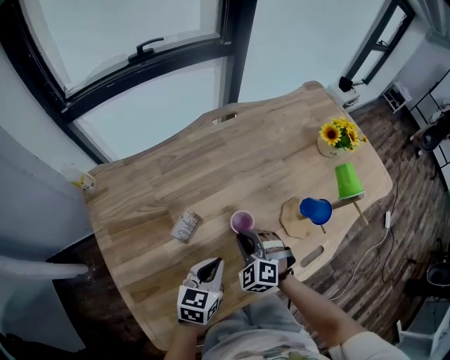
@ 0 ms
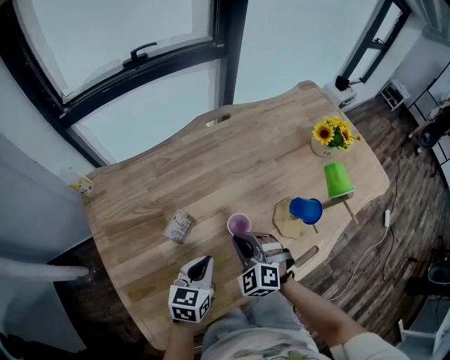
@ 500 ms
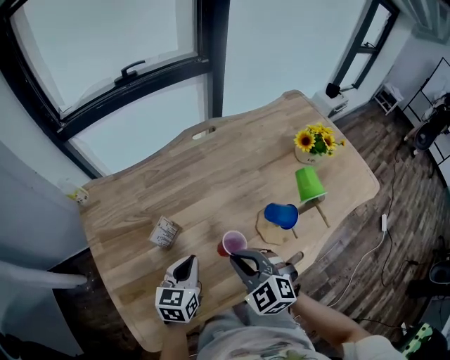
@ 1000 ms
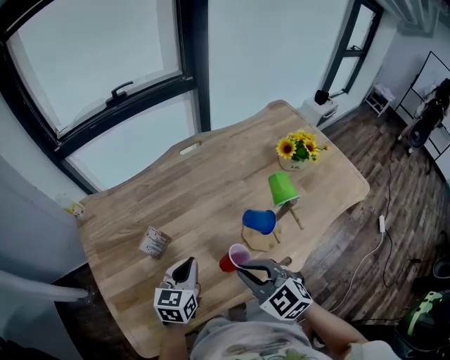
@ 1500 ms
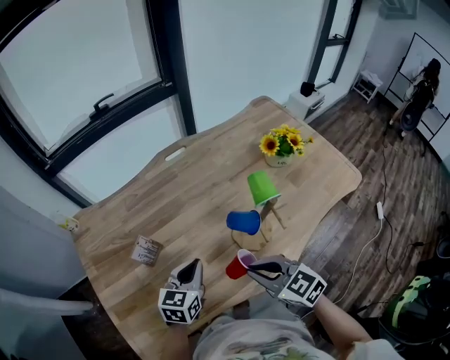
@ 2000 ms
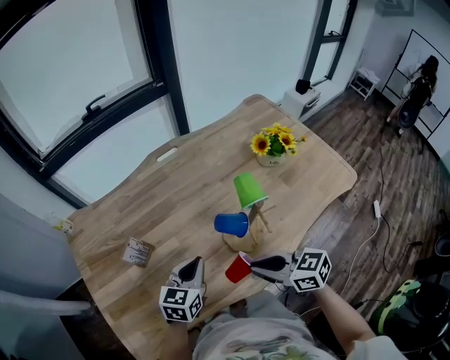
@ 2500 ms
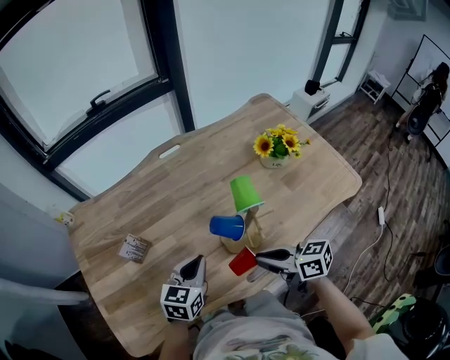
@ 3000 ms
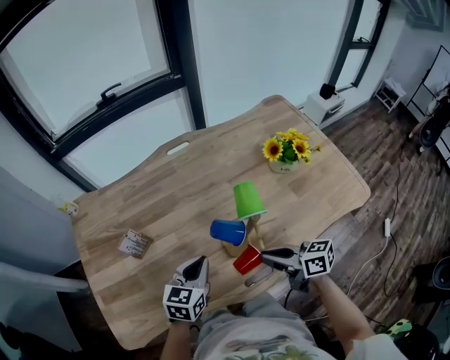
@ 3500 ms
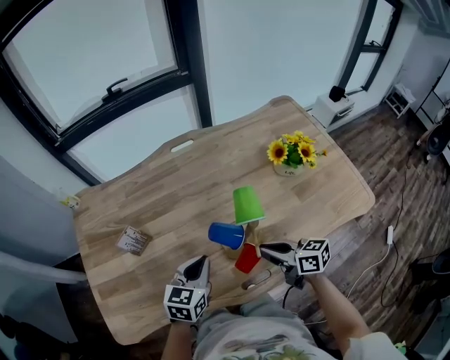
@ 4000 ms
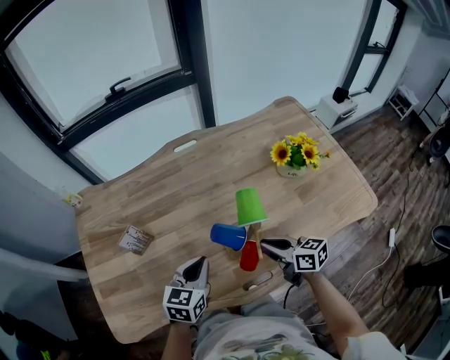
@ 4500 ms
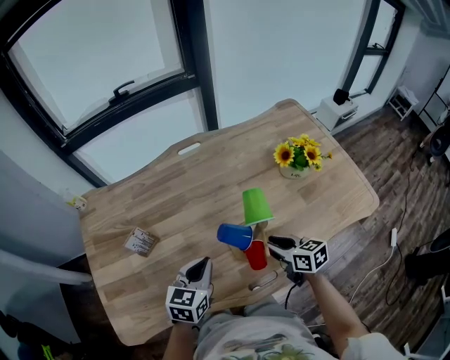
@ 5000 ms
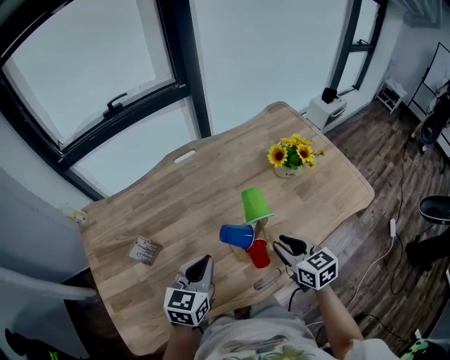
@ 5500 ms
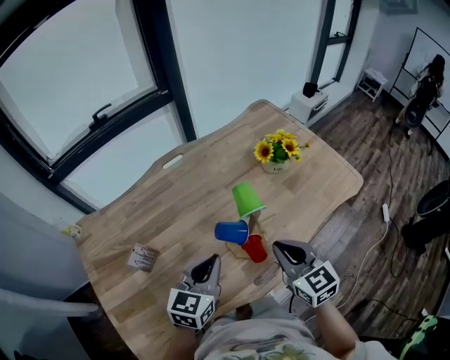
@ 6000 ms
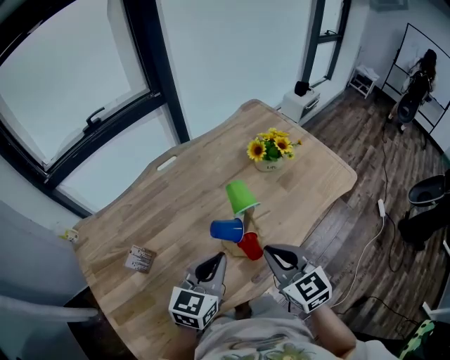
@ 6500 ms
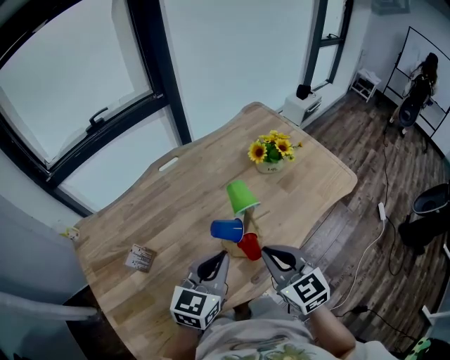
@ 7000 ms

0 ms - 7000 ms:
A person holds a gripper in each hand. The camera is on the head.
0 ms - 2000 ms: The right gripper goes about 25 cm to the right, upward and backward, and rotates roughly 50 degrees. The left gripper shifts approximately 10 cm to the right and upward.
2000 ms - 3500 ms: The right gripper shifts approximately 15 cm to the right, and turns by approximately 40 degrees; the left gripper heads to the right, covering about 10 cm.
3500 ms - 5000 ms: The right gripper goes roughly 10 cm downward and forward, swivels about 20 degrees, and opens.
5000 ms - 7000 ms: The left gripper moves upward and to the right, approximately 15 cm, and changes its angle by approximately 20 degrees; the right gripper goes roughly 20 cm upward and backward, swivels approximately 40 degrees, and closes its fingers.

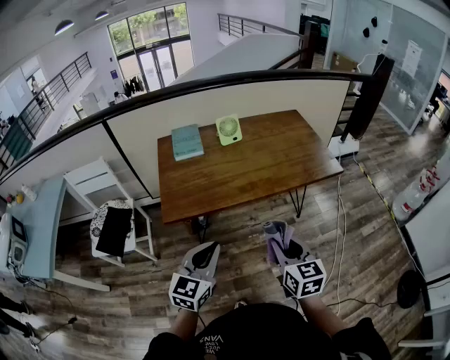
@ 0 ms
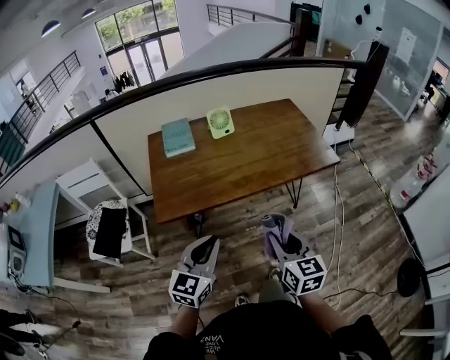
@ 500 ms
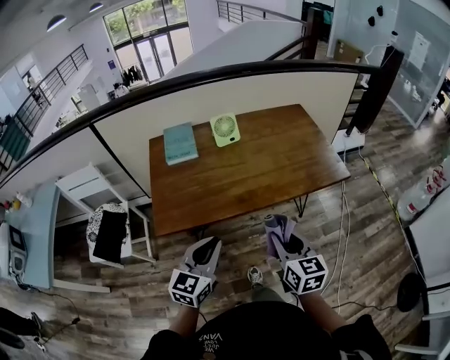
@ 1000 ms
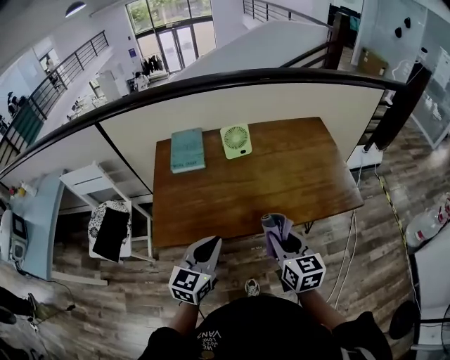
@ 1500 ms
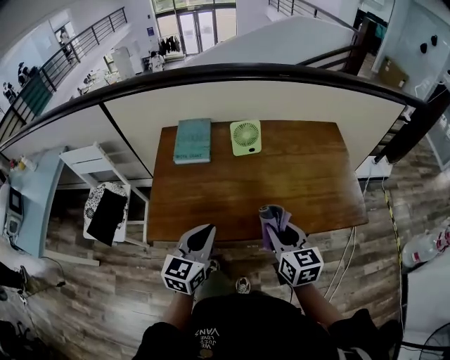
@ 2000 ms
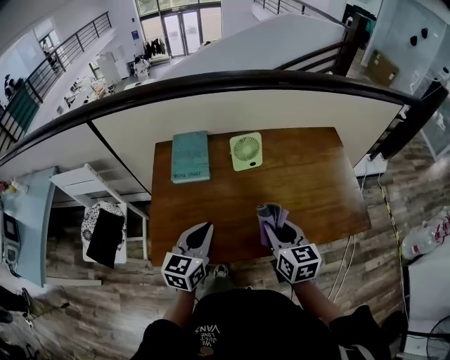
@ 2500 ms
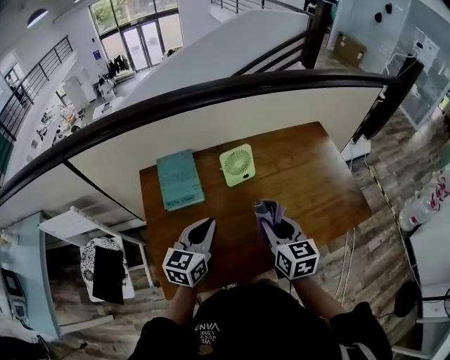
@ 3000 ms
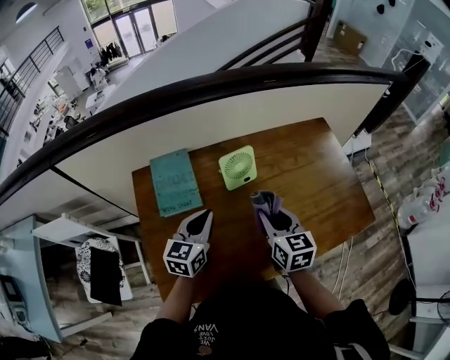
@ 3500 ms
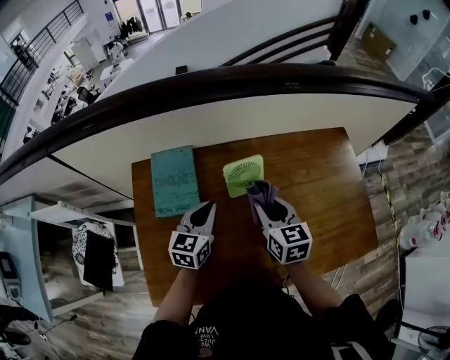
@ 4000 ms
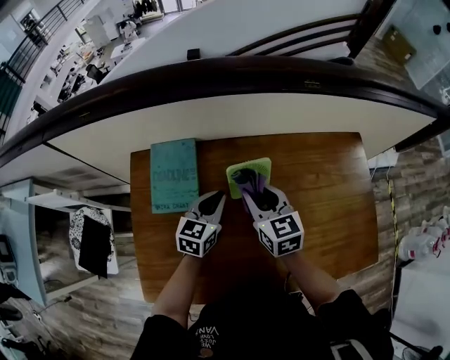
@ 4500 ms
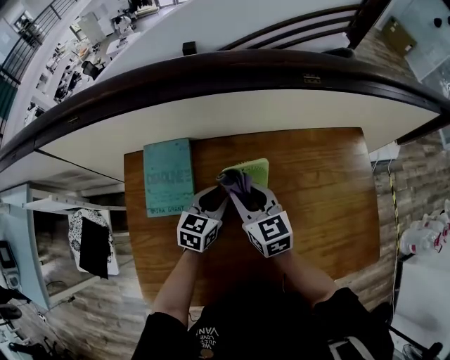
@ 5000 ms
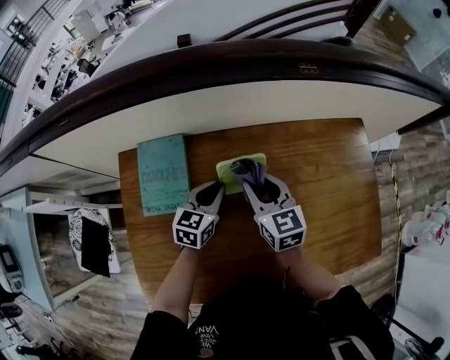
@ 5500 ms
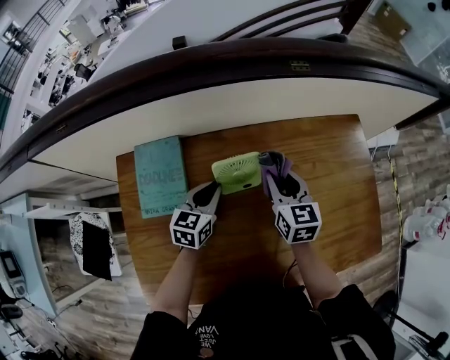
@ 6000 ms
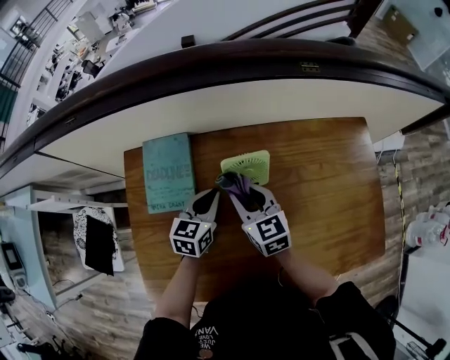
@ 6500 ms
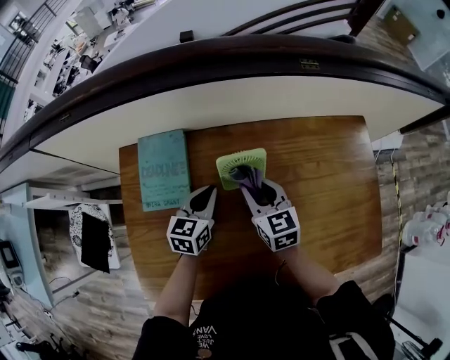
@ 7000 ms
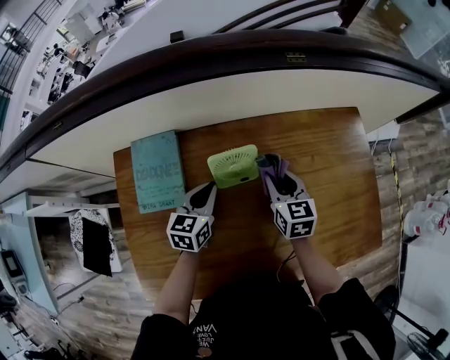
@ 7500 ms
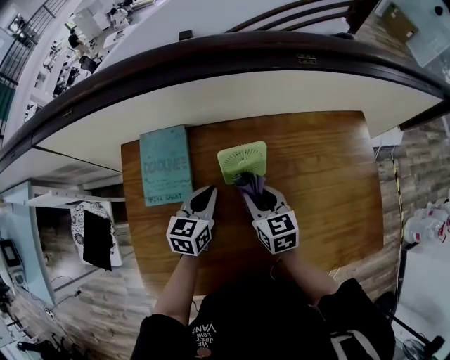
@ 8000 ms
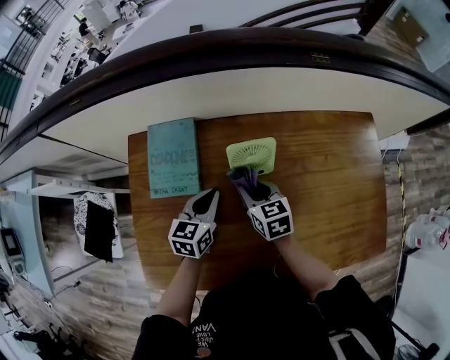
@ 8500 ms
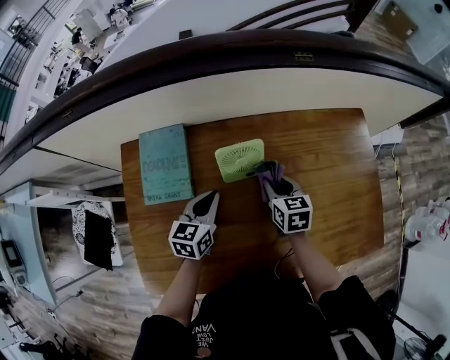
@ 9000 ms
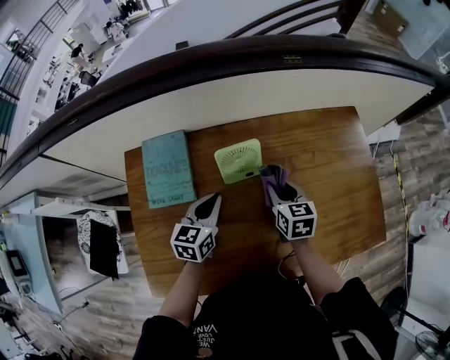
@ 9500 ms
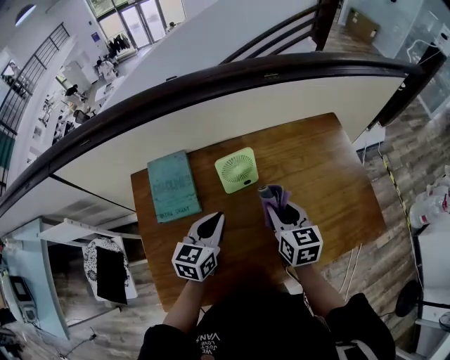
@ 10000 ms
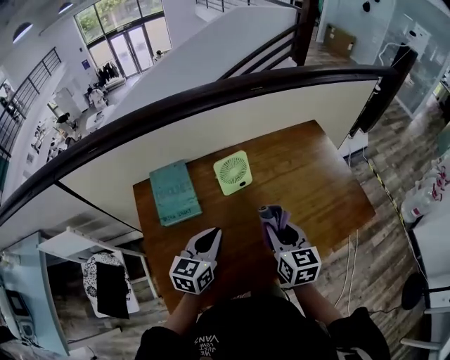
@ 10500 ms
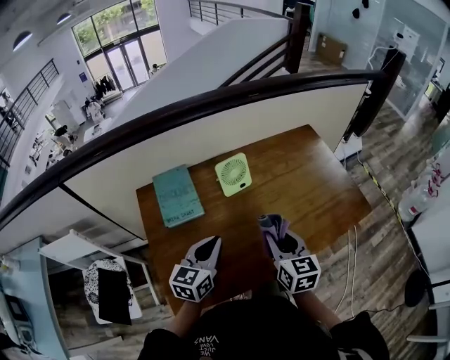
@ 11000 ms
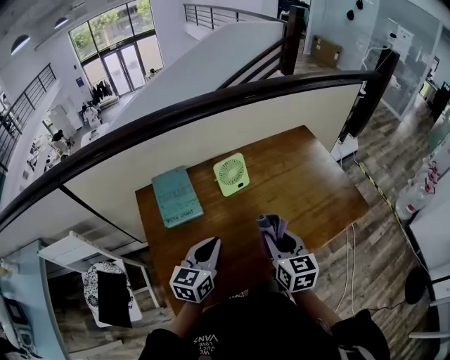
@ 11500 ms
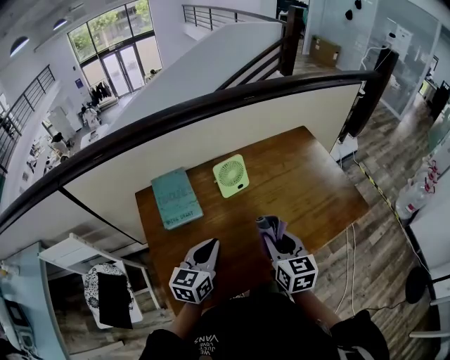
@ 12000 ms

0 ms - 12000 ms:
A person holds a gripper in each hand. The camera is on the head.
0 ms - 2000 ms: Both grippers move forward, about 25 cm.
2000 ms - 4000 ms: Both grippers travel together forward, approximately 30 cm.
4000 ms - 6000 ms: The left gripper heads downward and forward, covering approximately 10 cm; the right gripper travels forward and to the right by some 10 cm.
6000 ms - 8000 ms: The right gripper goes left and right, some 15 cm each way, reversing 2 times.
8000 ms - 10000 ms: The right gripper is displaced upward, to the right and backward by roughly 10 cm, while the left gripper heads backward and upward, covering approximately 10 cm.
10000 ms - 12000 ms: The grippers both shift backward by about 15 cm.

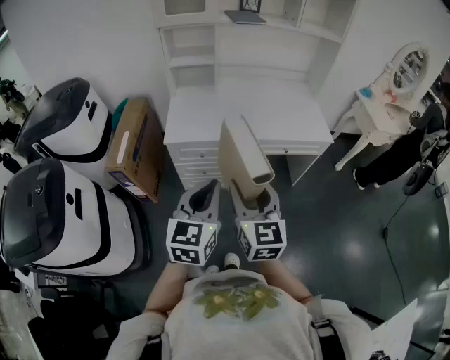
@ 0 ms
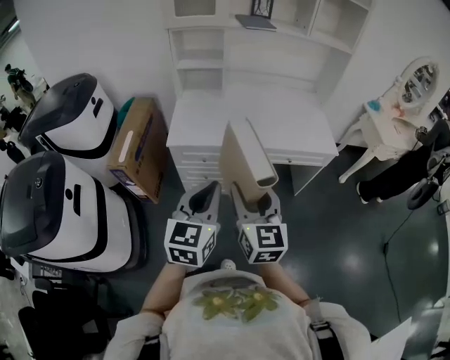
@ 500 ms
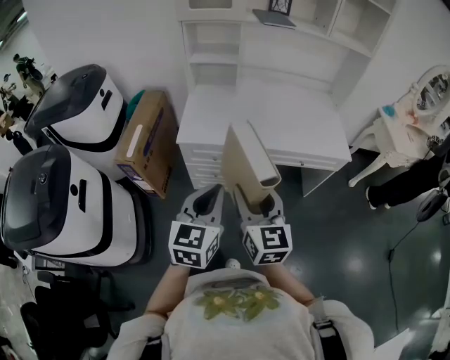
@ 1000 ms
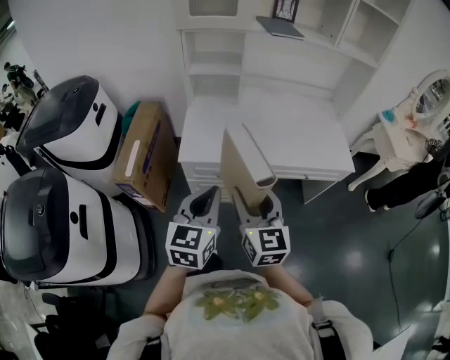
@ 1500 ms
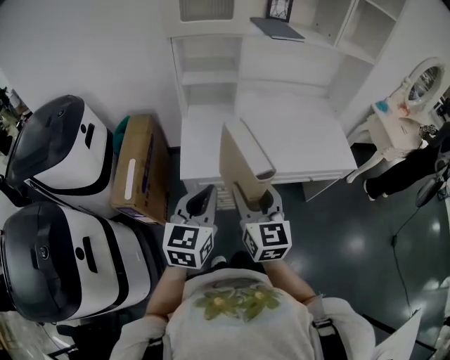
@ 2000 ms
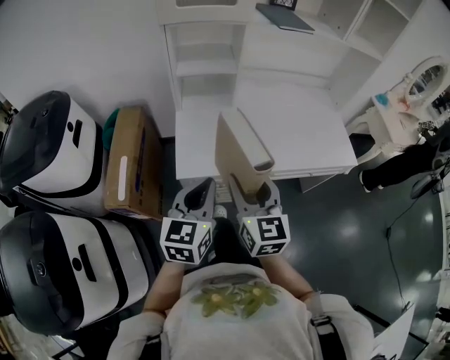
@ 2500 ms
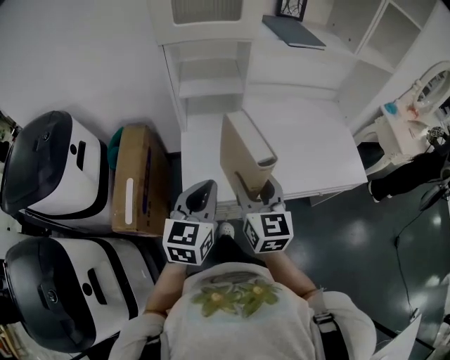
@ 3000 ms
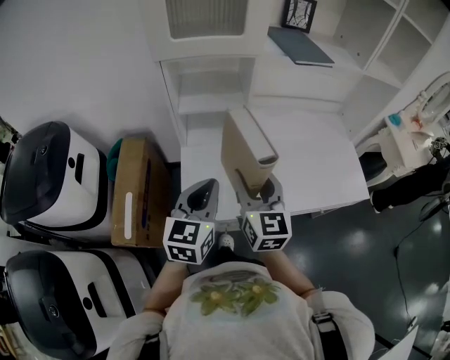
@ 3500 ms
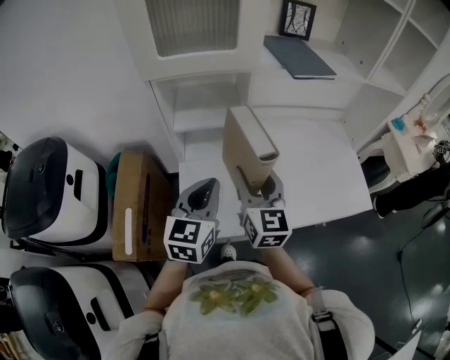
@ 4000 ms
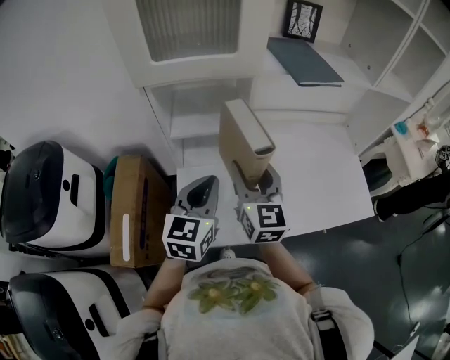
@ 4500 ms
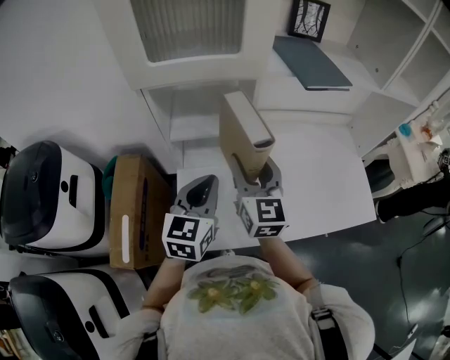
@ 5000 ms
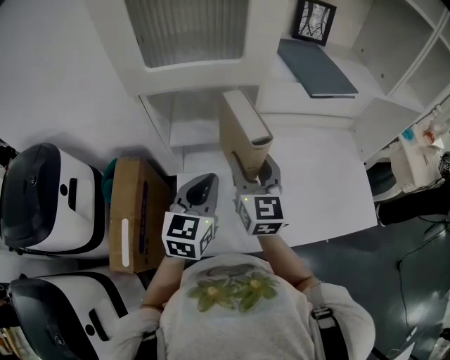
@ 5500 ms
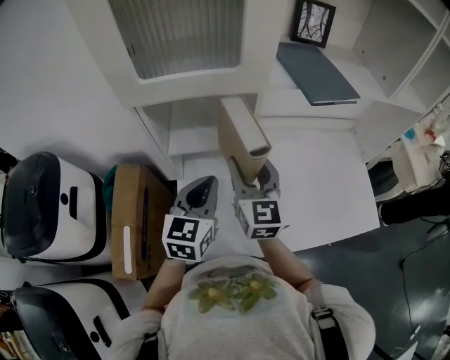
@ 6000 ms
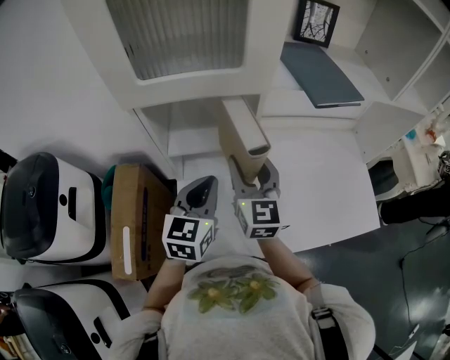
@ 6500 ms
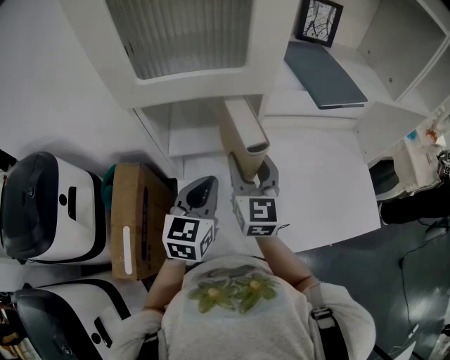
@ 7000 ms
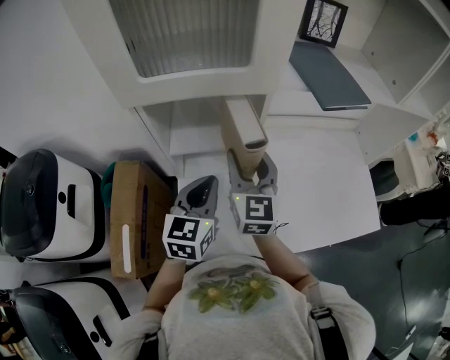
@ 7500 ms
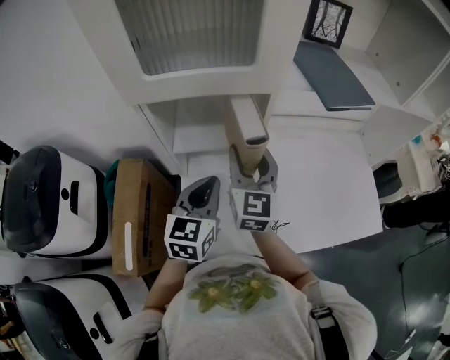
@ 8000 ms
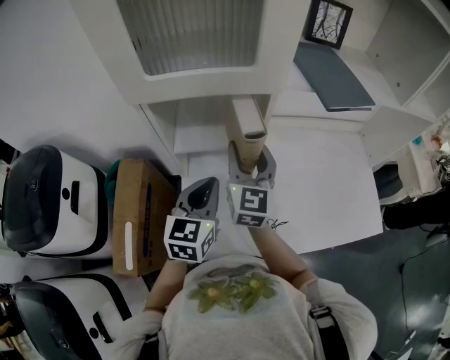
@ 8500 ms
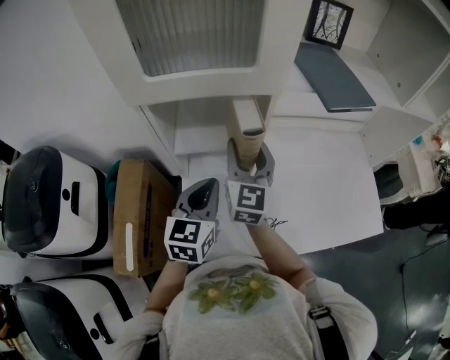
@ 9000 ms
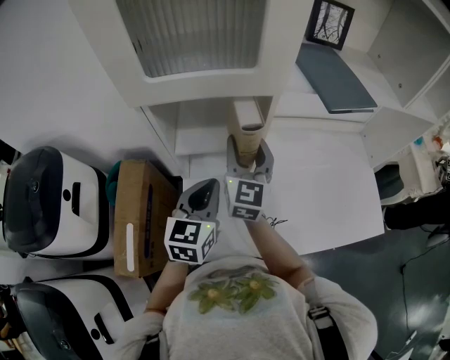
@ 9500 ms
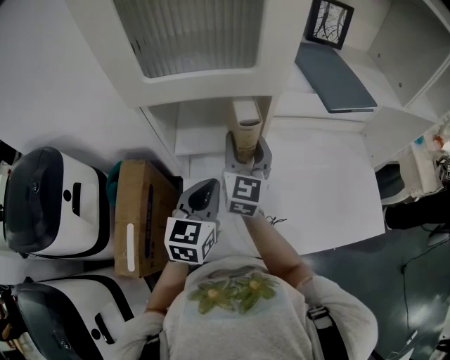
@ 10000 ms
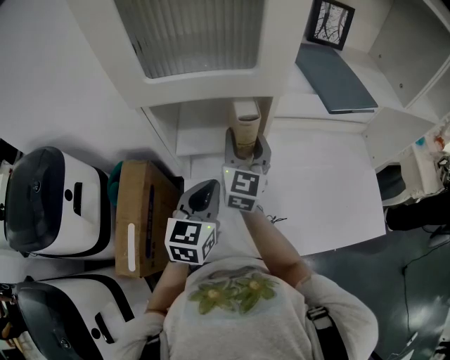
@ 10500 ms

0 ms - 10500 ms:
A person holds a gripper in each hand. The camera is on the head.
0 ms - 2000 ms: The grippers both shift forward and to the left by roughly 25 cm.
2000 ms - 4000 ms: Both grippers move forward, about 30 cm.
4000 ms - 6500 ms: The grippers both shift forward by roughly 15 cm.
6500 ms - 8500 ms: There are only small adjustments of the grippers.
8500 ms - 10500 ms: There are only small adjustments of the grippers.
